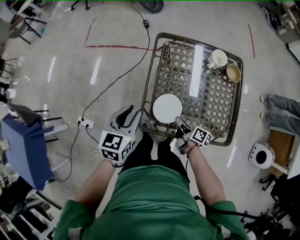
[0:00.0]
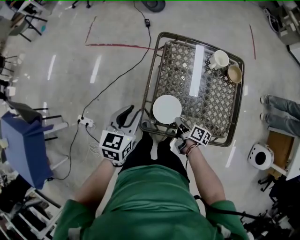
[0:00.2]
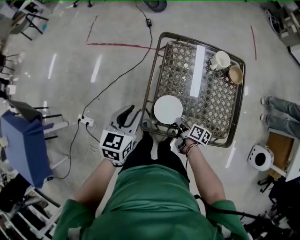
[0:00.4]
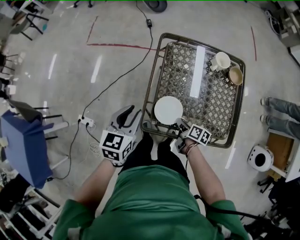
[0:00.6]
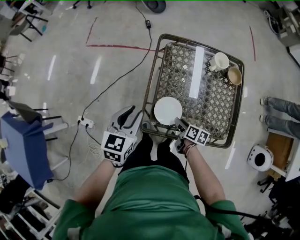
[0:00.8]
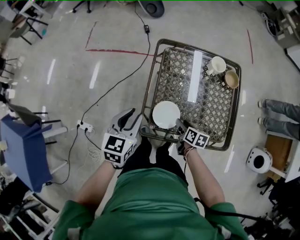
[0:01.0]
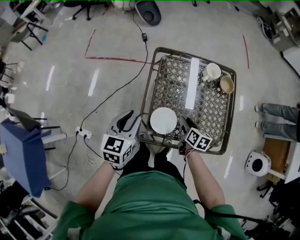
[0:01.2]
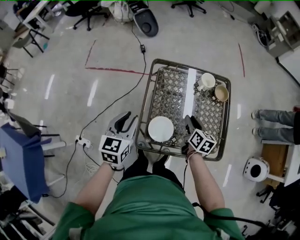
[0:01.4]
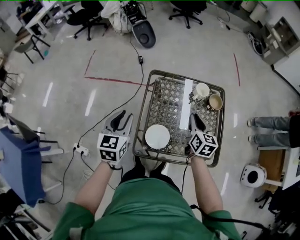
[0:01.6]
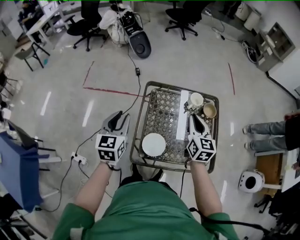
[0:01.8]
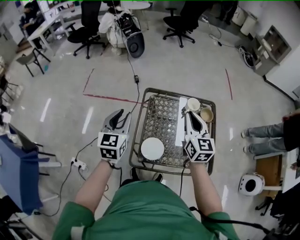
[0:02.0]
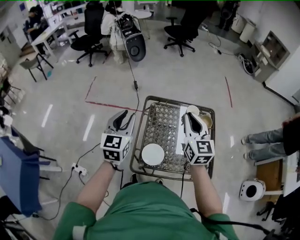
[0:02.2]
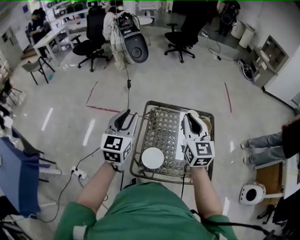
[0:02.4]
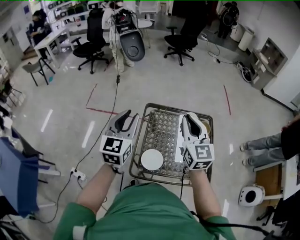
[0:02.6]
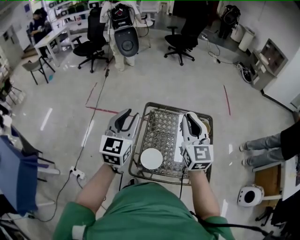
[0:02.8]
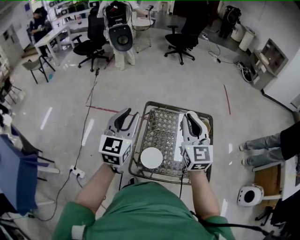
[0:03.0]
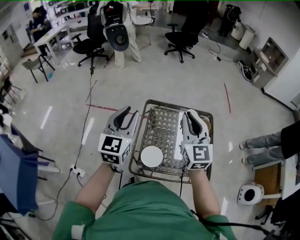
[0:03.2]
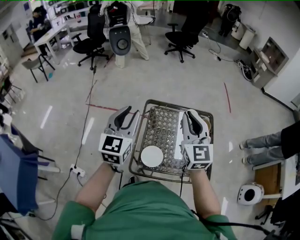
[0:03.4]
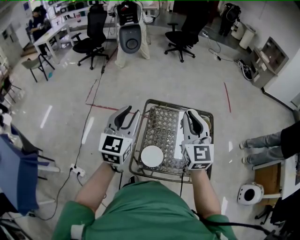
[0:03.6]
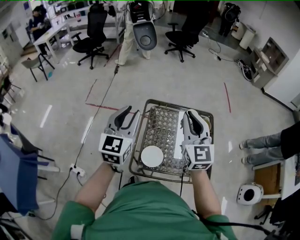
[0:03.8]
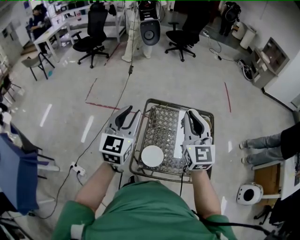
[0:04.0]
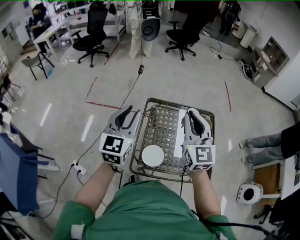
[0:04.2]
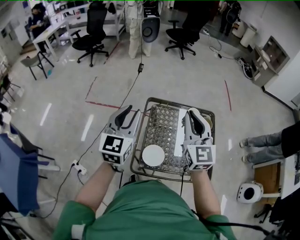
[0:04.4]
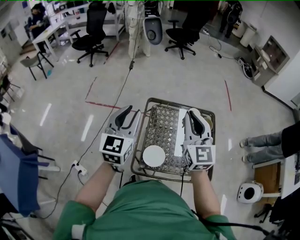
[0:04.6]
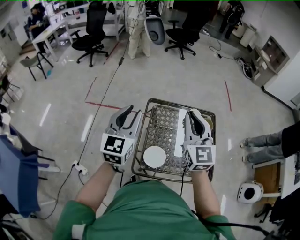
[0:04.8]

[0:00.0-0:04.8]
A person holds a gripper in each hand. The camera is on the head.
0:00.0 to 0:01.6: The right gripper moves upward, forward and to the right, some 25 cm, rolls counterclockwise, seen from behind, by some 50 degrees, and opens, then closes again. The left gripper moves upward and forward, about 10 cm.
0:01.6 to 0:03.2: Both grippers travel together upward, about 20 cm. The right gripper swivels about 40 degrees, while the left gripper rotates about 20 degrees.
0:03.2 to 0:04.8: The grippers stay close to where they were, moving slightly.

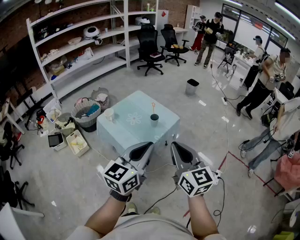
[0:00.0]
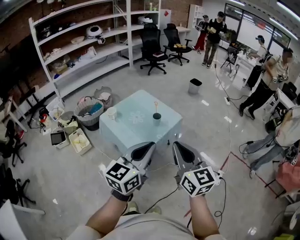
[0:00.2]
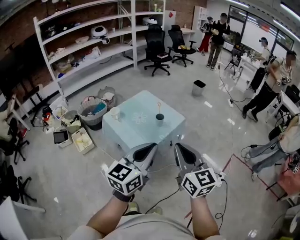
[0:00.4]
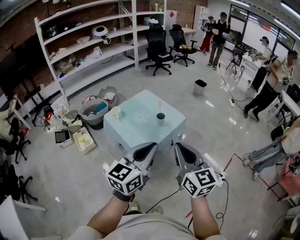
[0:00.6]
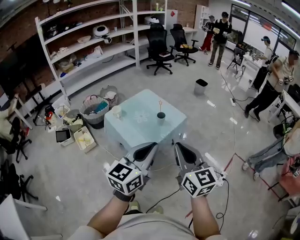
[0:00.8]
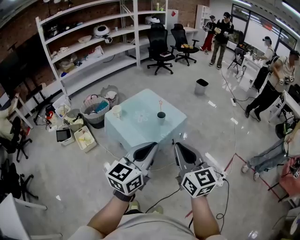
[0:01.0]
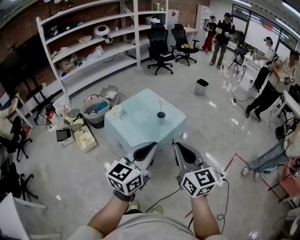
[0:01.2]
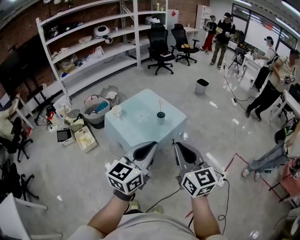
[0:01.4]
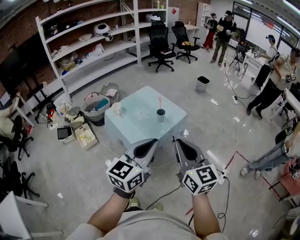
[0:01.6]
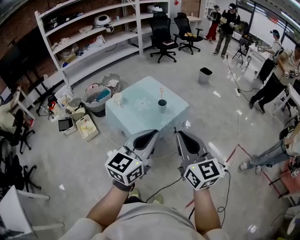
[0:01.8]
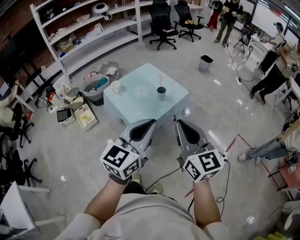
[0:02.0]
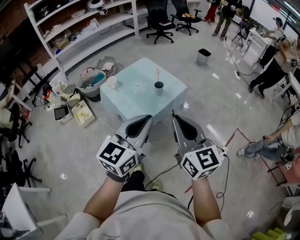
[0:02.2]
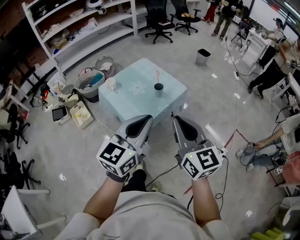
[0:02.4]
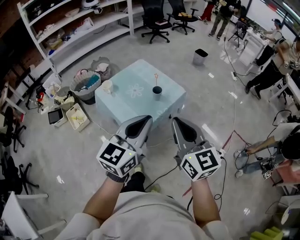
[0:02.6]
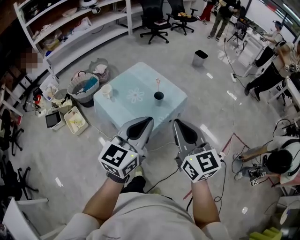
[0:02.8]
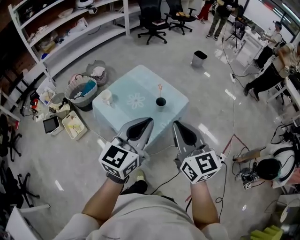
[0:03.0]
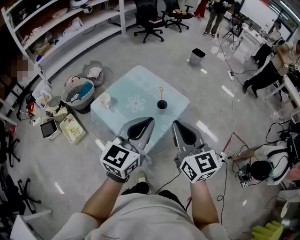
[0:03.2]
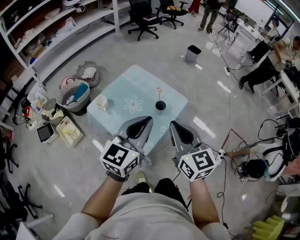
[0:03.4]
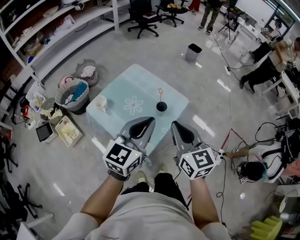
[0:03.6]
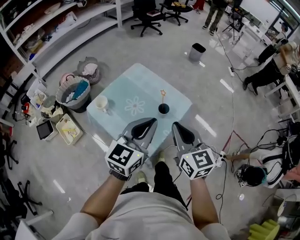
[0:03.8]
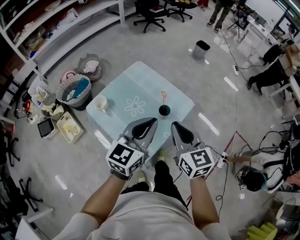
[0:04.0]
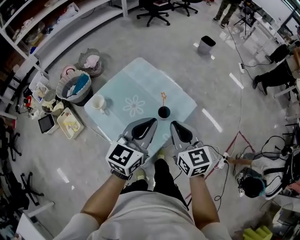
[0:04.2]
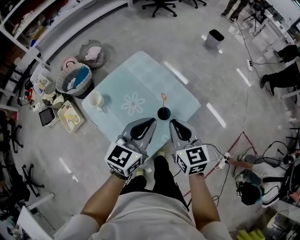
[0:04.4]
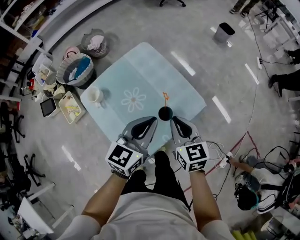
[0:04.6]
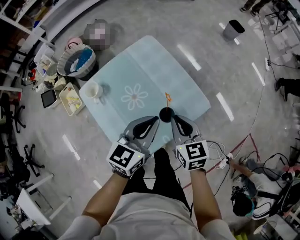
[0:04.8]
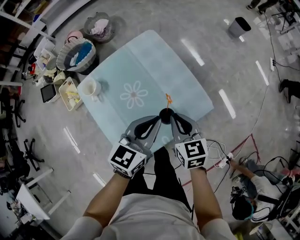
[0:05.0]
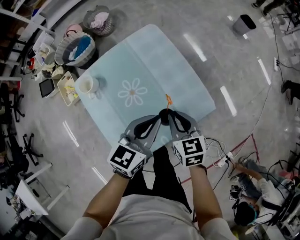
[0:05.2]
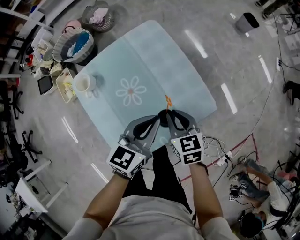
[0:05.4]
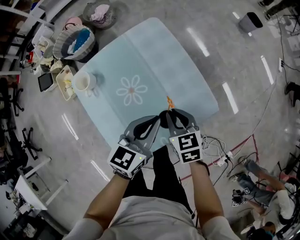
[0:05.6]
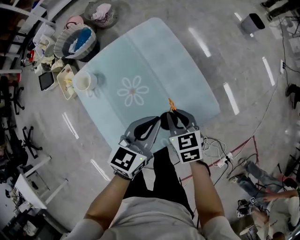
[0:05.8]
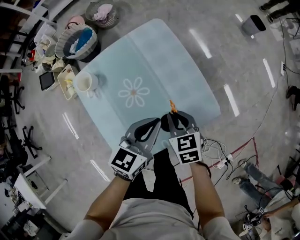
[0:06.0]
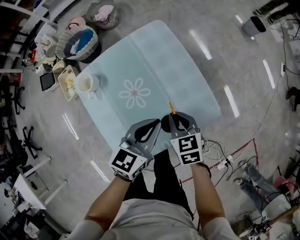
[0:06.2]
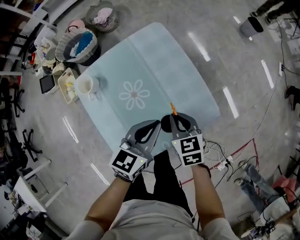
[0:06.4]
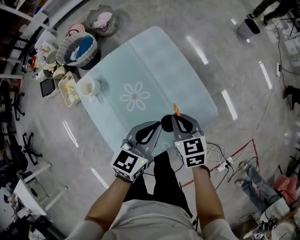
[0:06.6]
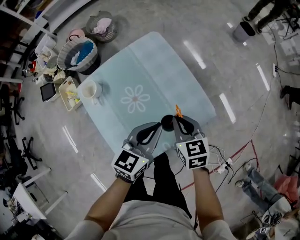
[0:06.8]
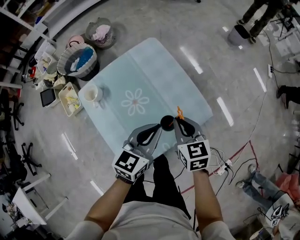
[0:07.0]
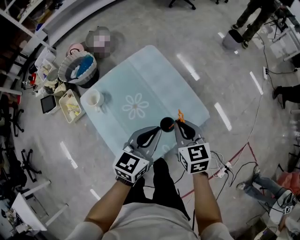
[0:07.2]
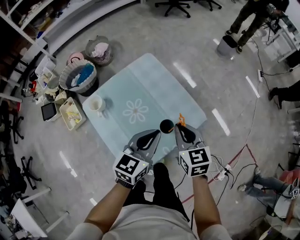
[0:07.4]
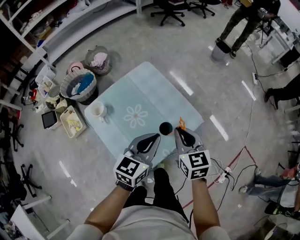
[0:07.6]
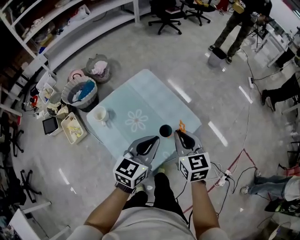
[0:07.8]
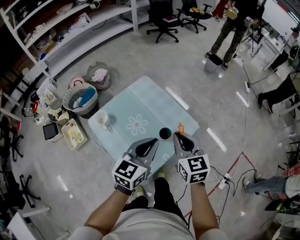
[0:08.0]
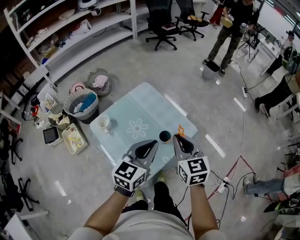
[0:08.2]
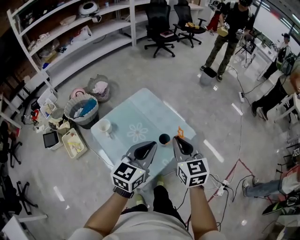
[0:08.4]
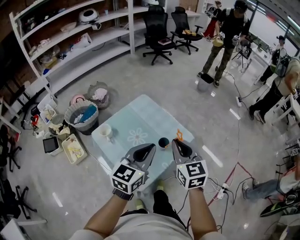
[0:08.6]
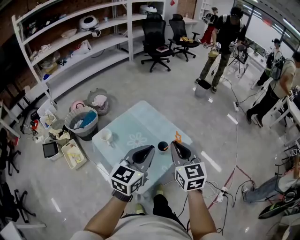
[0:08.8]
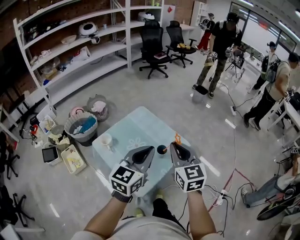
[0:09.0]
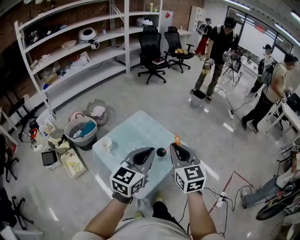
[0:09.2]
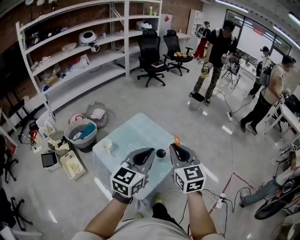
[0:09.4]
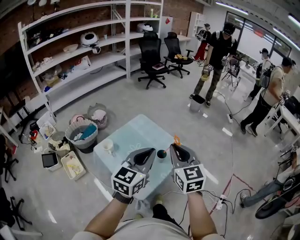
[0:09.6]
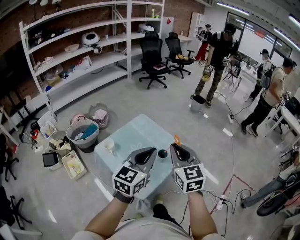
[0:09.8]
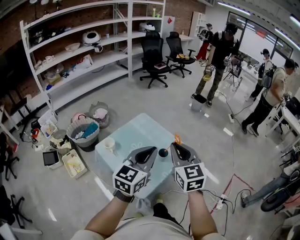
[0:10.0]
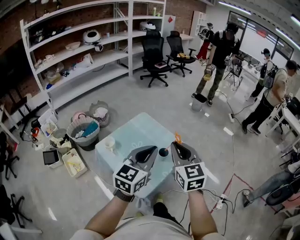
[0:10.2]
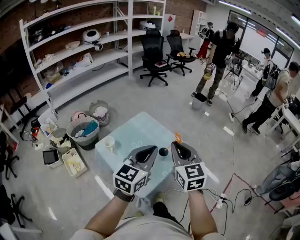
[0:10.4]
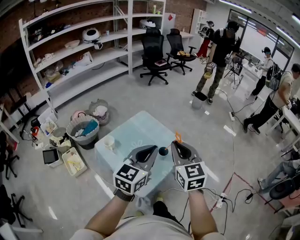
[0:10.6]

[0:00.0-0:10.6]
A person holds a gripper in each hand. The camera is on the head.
0:00.0 to 0:01.6: The grippers stay close to where they were, moving slightly.
0:01.6 to 0:03.0: The grippers both shift forward and to the left by some 20 cm.
0:03.0 to 0:04.6: The grippers both shift forward and downward by about 35 cm. The right gripper changes its angle by about 30 degrees.
0:04.6 to 0:06.0: Both grippers move downward, approximately 15 cm. The right gripper rotates approximately 20 degrees.
0:06.0 to 0:07.6: The left gripper moves upward and backward, approximately 15 cm. Meanwhile the right gripper shifts about 20 cm upward, and rotates some 30 degrees.
0:07.6 to 0:09.0: The grippers both shift upward and backward by roughly 20 cm.
0:09.0 to 0:10.6: The grippers make only small movements.

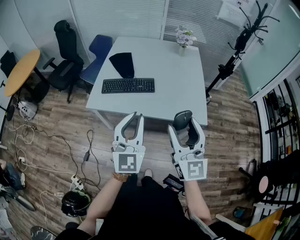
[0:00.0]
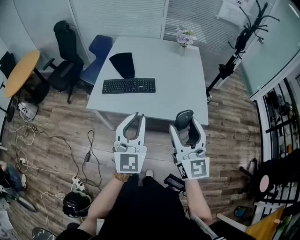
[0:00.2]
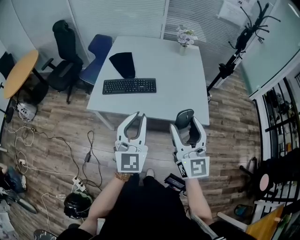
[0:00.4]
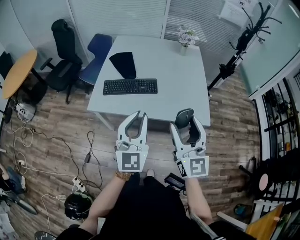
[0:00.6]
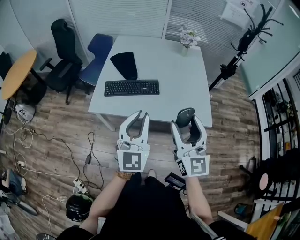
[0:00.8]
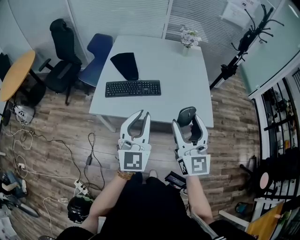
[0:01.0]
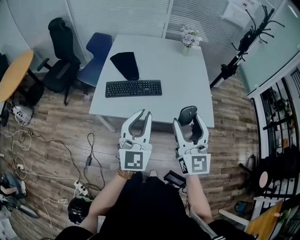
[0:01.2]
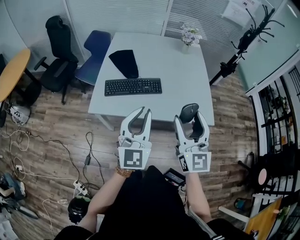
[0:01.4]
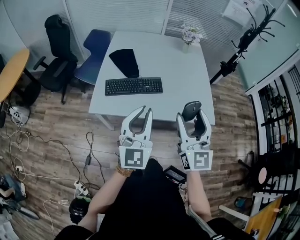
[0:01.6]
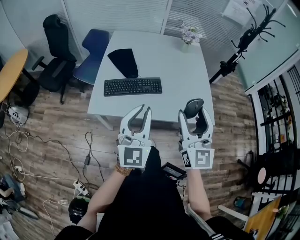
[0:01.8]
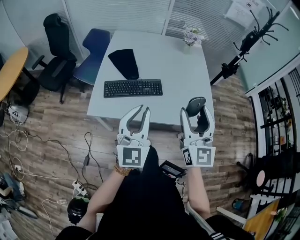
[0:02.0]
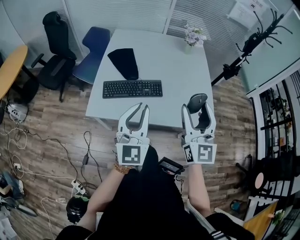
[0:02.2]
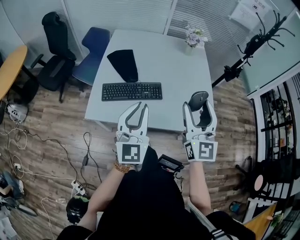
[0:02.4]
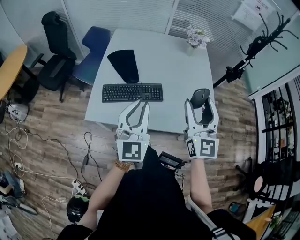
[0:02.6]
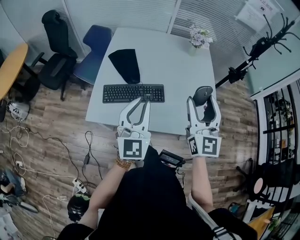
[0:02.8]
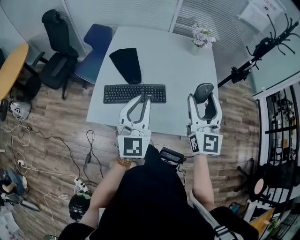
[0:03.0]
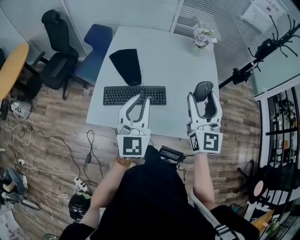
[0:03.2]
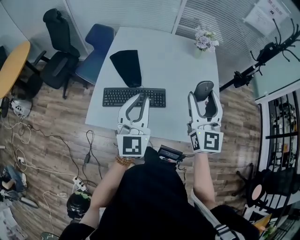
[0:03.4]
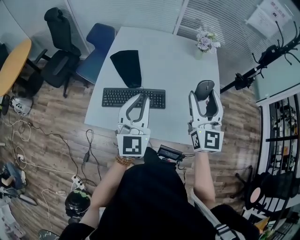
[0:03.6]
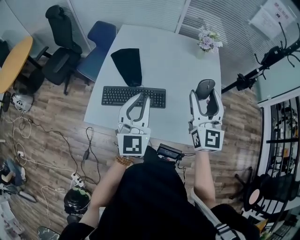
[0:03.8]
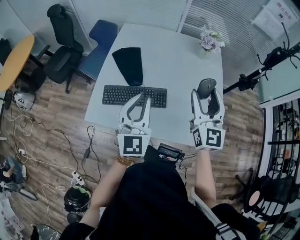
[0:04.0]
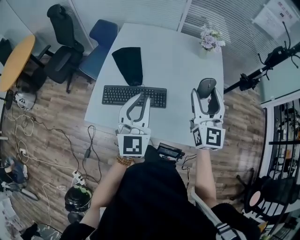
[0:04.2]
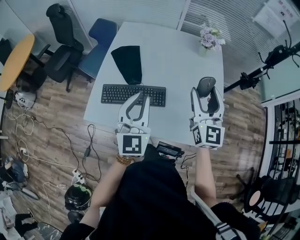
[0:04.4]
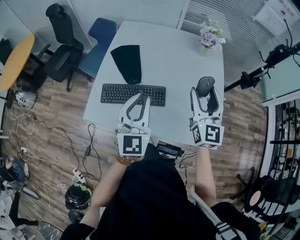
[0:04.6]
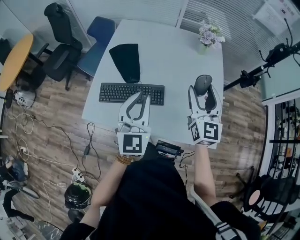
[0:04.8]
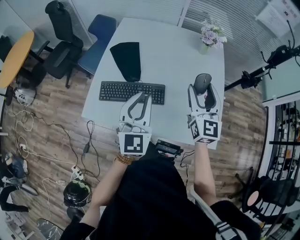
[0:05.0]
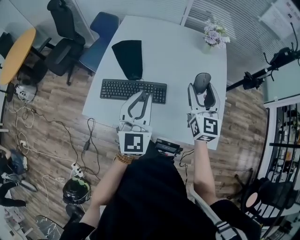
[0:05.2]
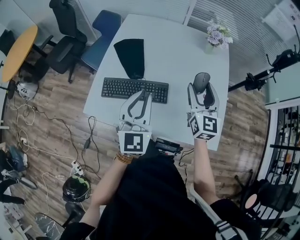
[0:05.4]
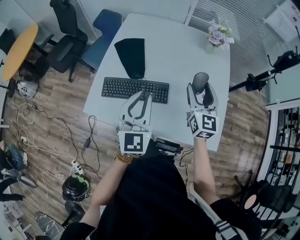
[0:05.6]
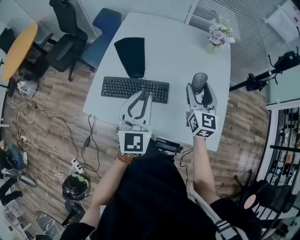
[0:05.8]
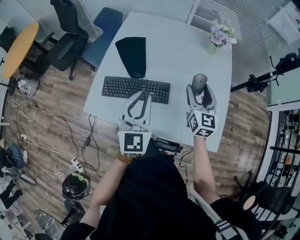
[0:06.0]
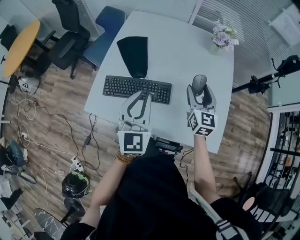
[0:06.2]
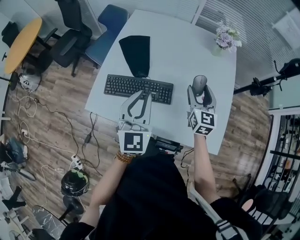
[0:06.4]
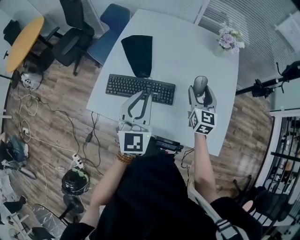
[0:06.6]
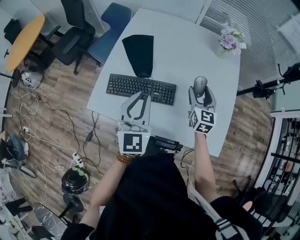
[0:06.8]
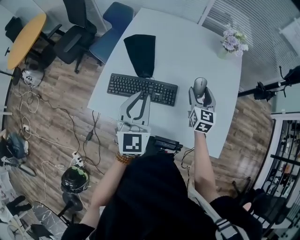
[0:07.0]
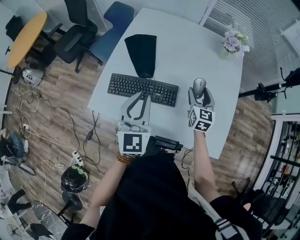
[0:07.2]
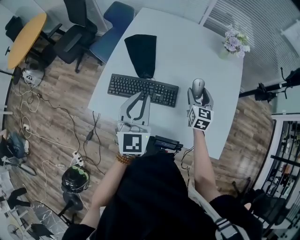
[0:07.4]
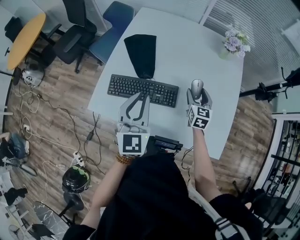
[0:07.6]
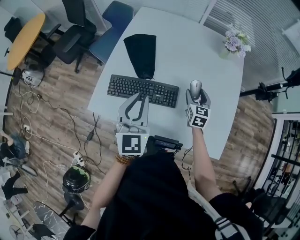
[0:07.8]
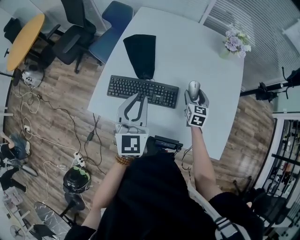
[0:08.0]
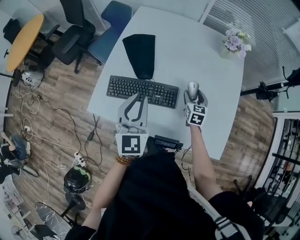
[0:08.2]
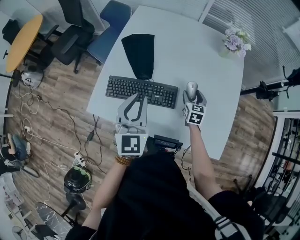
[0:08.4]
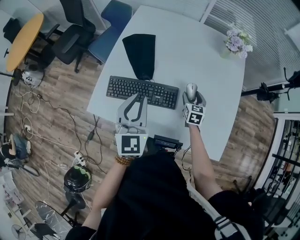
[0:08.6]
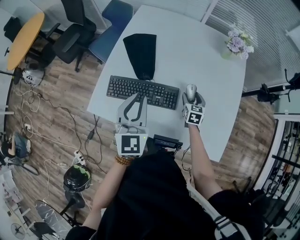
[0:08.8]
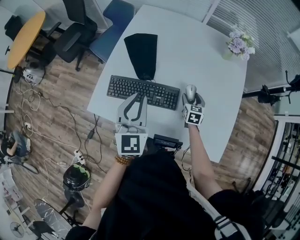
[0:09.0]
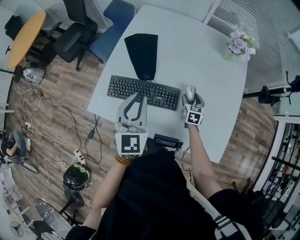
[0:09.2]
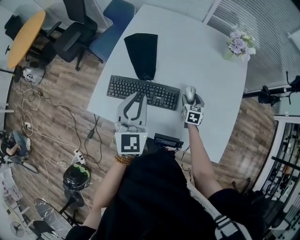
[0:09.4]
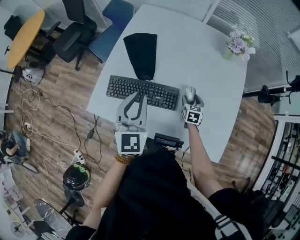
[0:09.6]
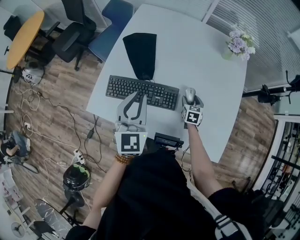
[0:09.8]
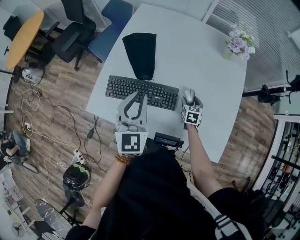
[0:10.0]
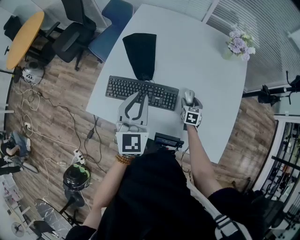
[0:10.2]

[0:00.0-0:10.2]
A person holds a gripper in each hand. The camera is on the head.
0:00.0 to 0:01.4: Both grippers travel together forward and to the left, approximately 10 cm.
0:01.4 to 0:03.0: The two grippers go approximately 20 cm forward.
0:03.0 to 0:04.4: The left gripper travels forward by approximately 5 cm. Meanwhile the right gripper travels forward by approximately 10 cm.
0:04.4 to 0:05.8: The right gripper is displaced downward and forward by roughly 10 cm.
0:05.8 to 0:07.2: The right gripper goes some 10 cm downward.
0:07.2 to 0:08.8: The right gripper moves downward, roughly 15 cm.
0:08.8 to 0:10.2: The right gripper shifts approximately 5 cm downward.
